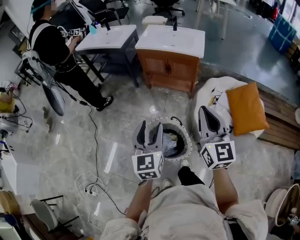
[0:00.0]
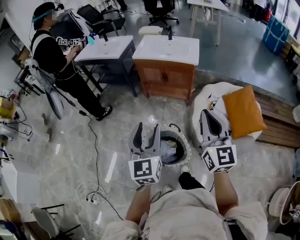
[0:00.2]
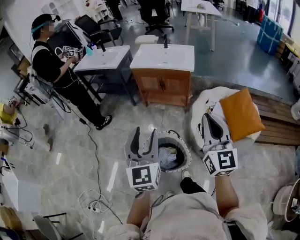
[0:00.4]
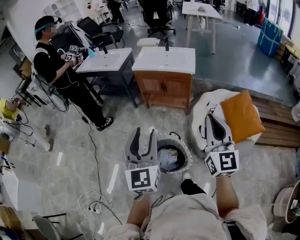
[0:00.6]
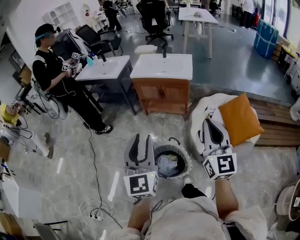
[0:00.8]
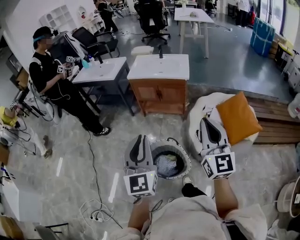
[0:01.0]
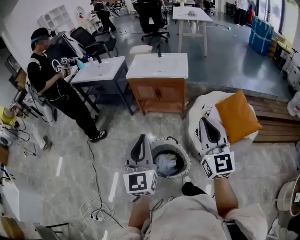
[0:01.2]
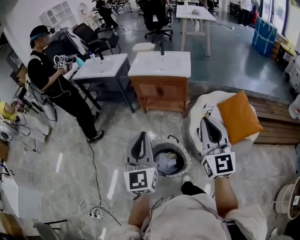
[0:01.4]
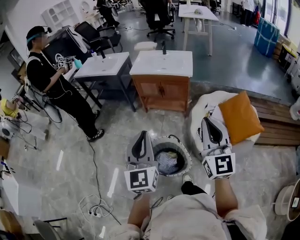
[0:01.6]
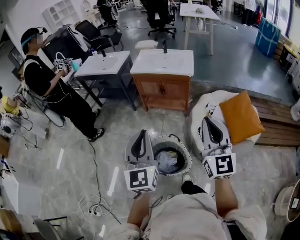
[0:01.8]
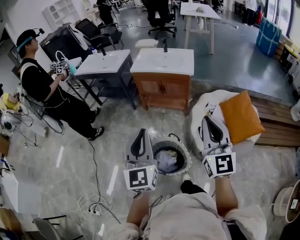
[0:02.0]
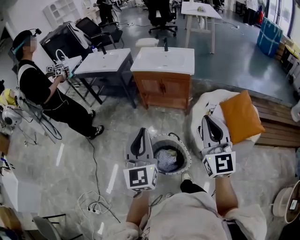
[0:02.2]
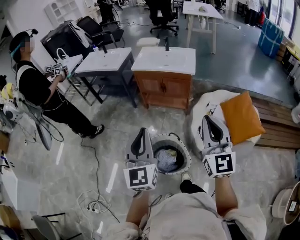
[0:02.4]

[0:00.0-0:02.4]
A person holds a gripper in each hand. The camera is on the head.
0:00.0 to 0:01.2: The left gripper moves upward, approximately 10 cm, and closes up. Meanwhile the right gripper moves upward and backward, some 10 cm.
0:01.2 to 0:02.4: The grippers make only small movements.

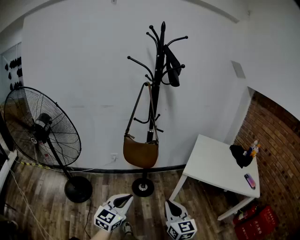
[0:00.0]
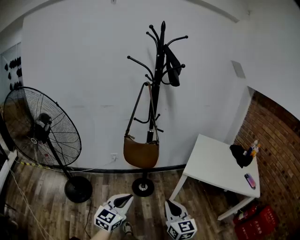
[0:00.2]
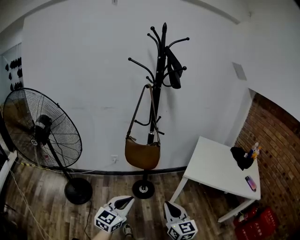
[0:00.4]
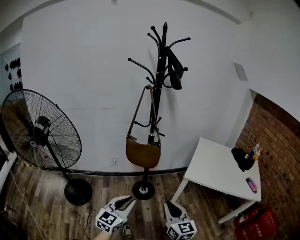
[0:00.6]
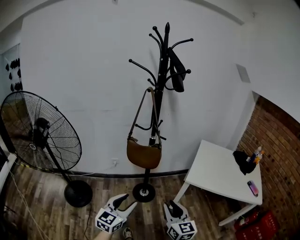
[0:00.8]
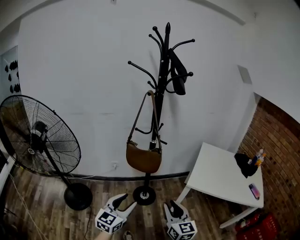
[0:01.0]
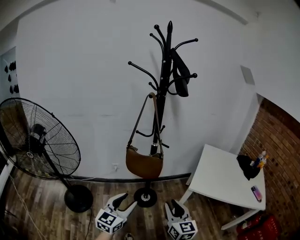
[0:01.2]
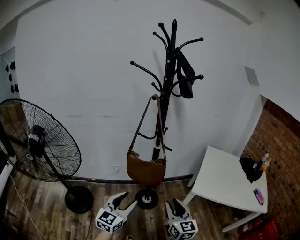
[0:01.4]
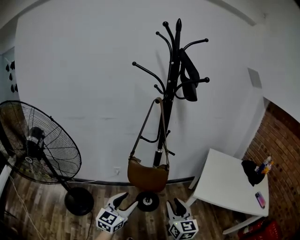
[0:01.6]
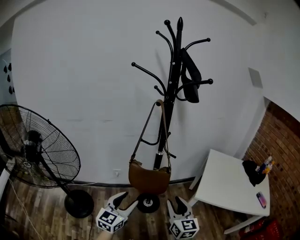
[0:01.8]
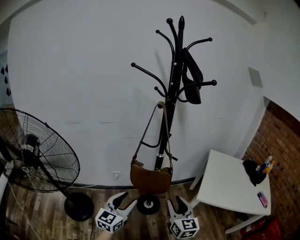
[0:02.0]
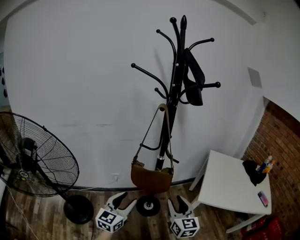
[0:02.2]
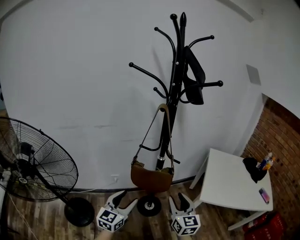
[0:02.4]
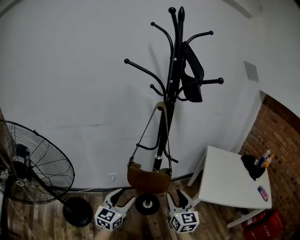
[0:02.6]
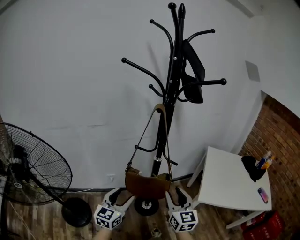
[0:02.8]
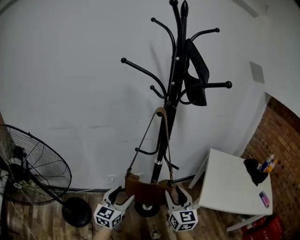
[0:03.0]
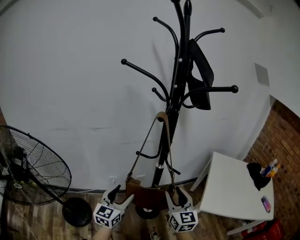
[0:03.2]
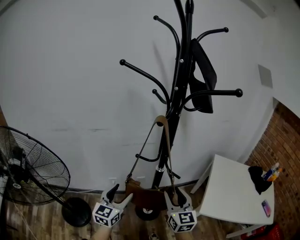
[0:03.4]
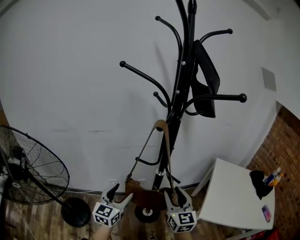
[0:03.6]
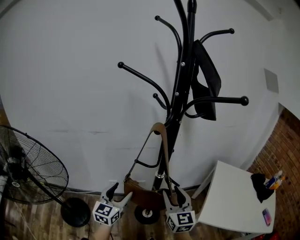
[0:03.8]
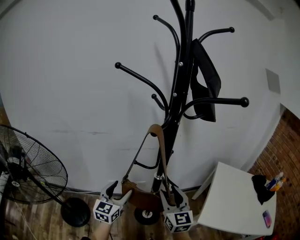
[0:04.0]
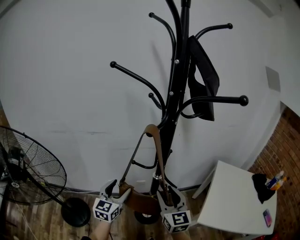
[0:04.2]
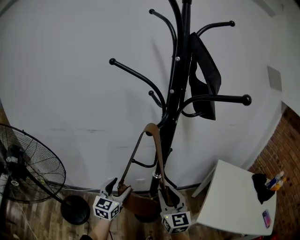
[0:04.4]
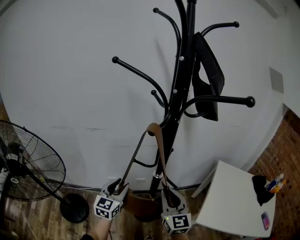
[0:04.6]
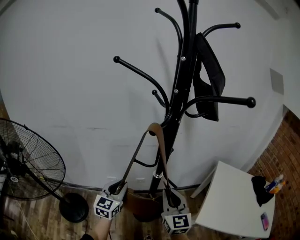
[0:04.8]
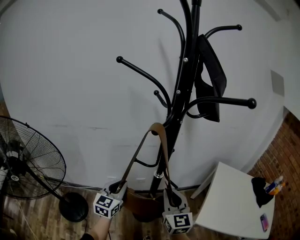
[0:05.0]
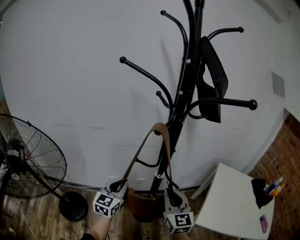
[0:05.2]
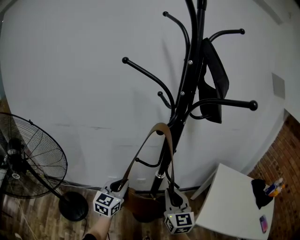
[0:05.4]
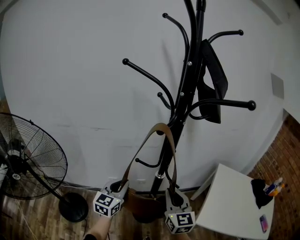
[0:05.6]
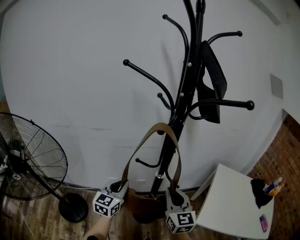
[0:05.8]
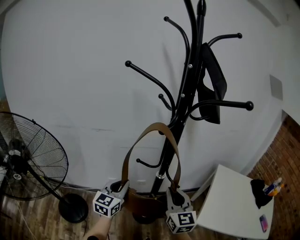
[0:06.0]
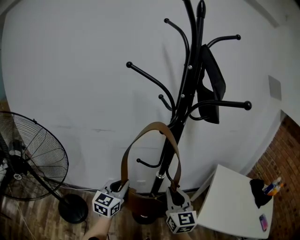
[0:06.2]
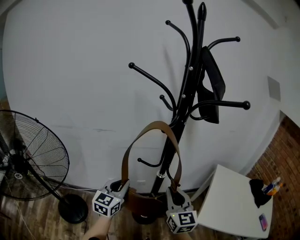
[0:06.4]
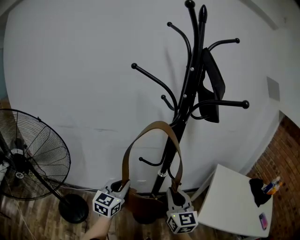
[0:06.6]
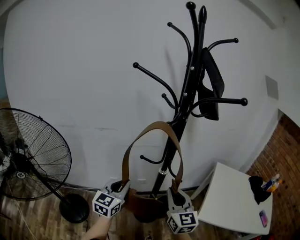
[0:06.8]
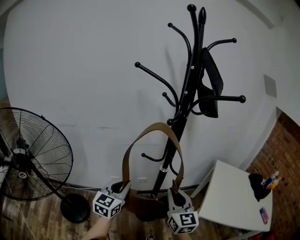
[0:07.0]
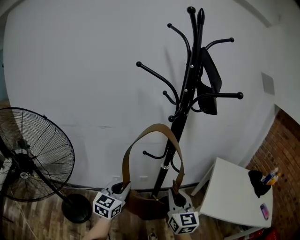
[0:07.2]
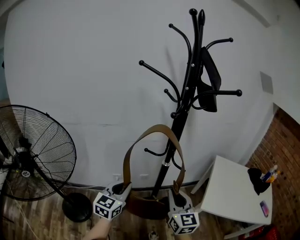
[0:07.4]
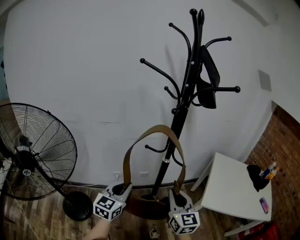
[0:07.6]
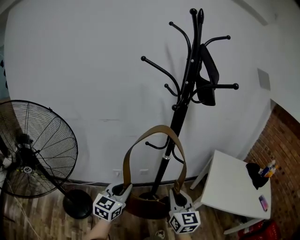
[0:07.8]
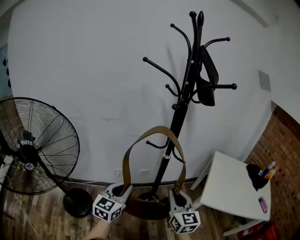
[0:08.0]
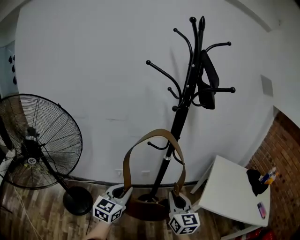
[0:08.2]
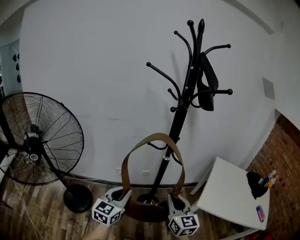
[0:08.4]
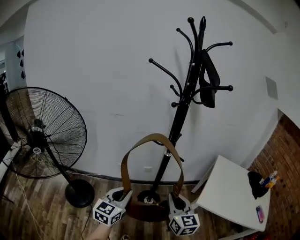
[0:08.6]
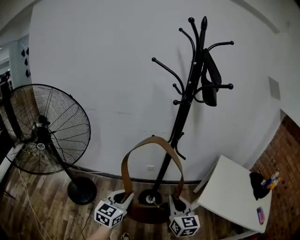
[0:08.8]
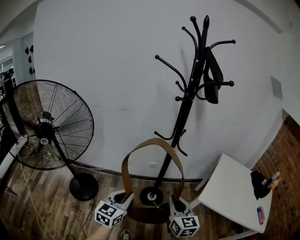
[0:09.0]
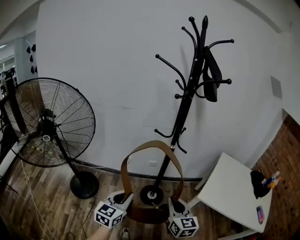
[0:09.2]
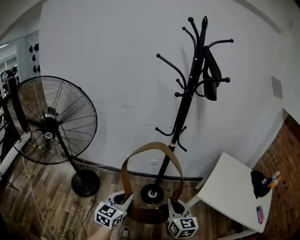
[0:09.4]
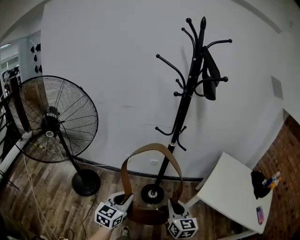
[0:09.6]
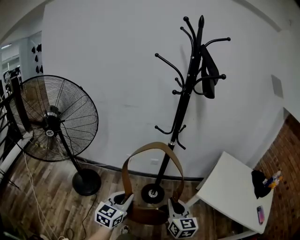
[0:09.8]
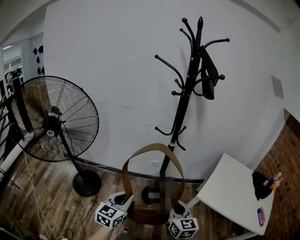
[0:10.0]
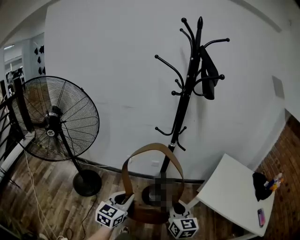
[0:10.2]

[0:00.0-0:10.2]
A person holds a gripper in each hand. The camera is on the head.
0:00.0 to 0:01.4: The grippers both shift forward by approximately 15 cm. The right gripper opens its fingers; the left gripper opens up.
0:01.4 to 0:03.0: The right gripper is displaced forward by some 20 cm, while the left gripper is displaced forward and to the left by roughly 20 cm.
0:03.0 to 0:04.4: The two grippers go roughly 10 cm forward.
0:04.4 to 0:05.8: The left gripper closes up, while the right gripper closes.
0:05.8 to 0:07.2: Both grippers move backward, roughly 10 cm.
0:07.2 to 0:08.8: Both grippers travel together backward, roughly 15 cm.
0:08.8 to 0:10.2: Both grippers travel together backward, some 5 cm.

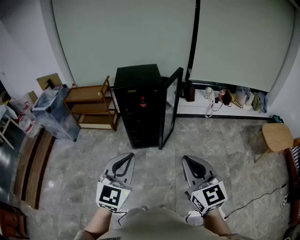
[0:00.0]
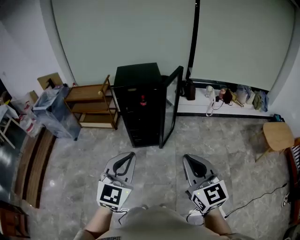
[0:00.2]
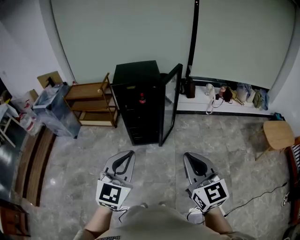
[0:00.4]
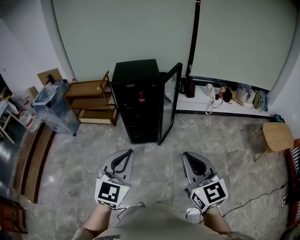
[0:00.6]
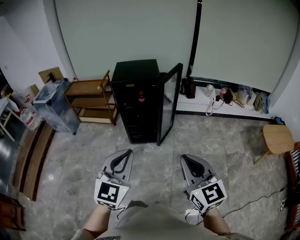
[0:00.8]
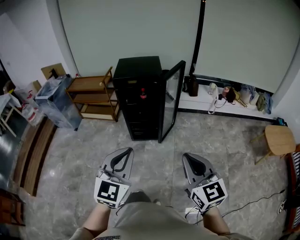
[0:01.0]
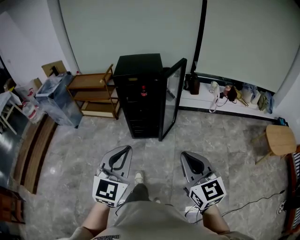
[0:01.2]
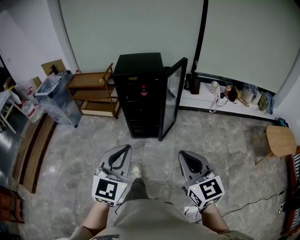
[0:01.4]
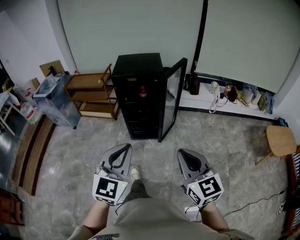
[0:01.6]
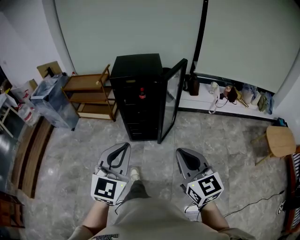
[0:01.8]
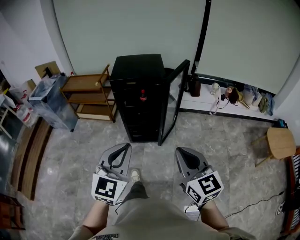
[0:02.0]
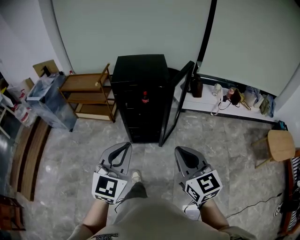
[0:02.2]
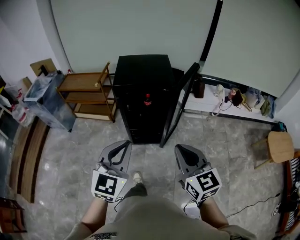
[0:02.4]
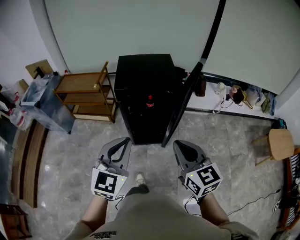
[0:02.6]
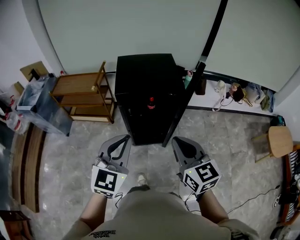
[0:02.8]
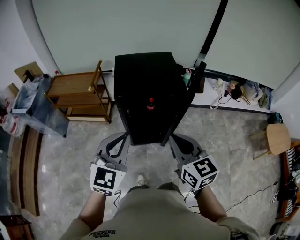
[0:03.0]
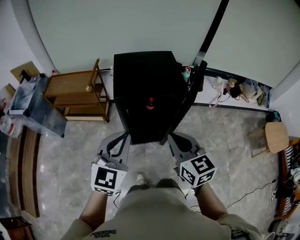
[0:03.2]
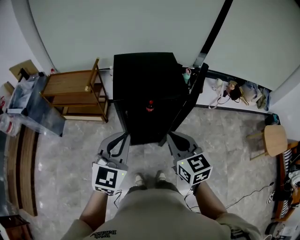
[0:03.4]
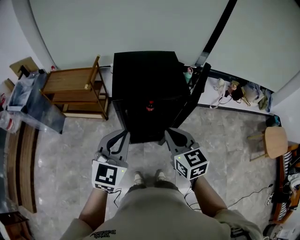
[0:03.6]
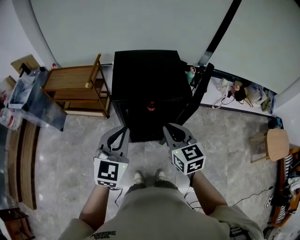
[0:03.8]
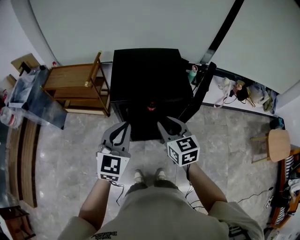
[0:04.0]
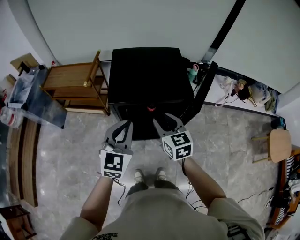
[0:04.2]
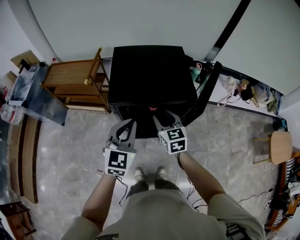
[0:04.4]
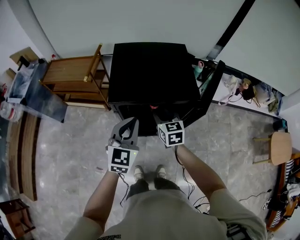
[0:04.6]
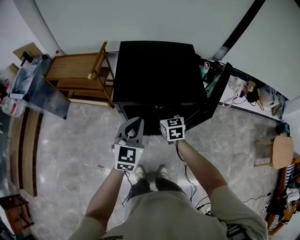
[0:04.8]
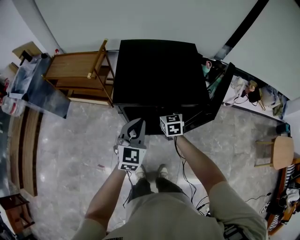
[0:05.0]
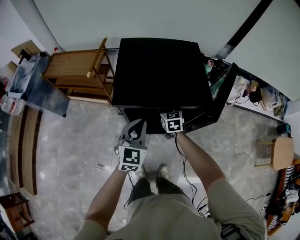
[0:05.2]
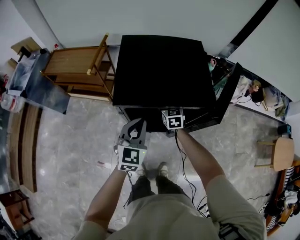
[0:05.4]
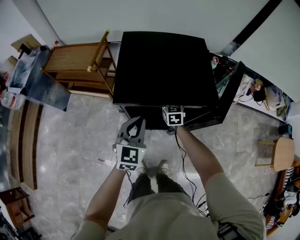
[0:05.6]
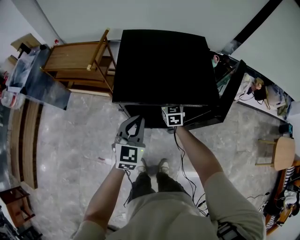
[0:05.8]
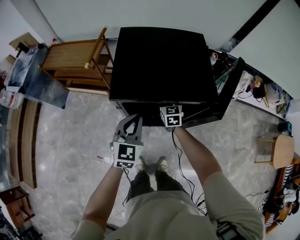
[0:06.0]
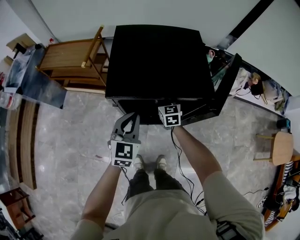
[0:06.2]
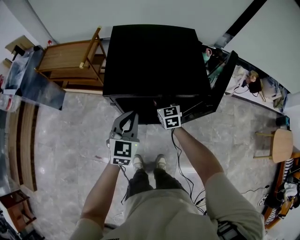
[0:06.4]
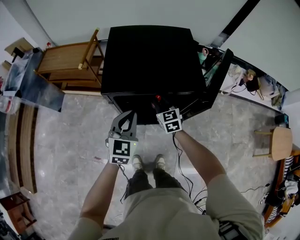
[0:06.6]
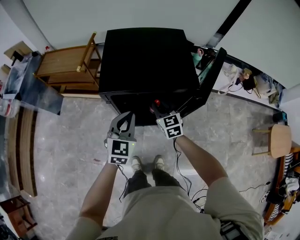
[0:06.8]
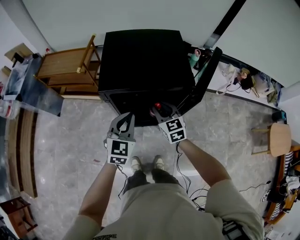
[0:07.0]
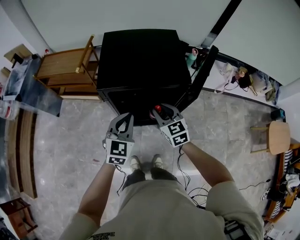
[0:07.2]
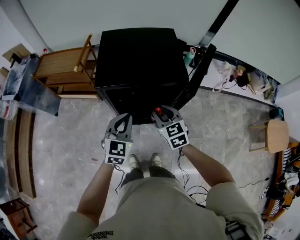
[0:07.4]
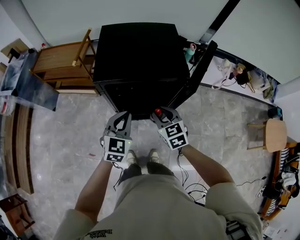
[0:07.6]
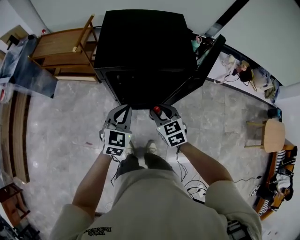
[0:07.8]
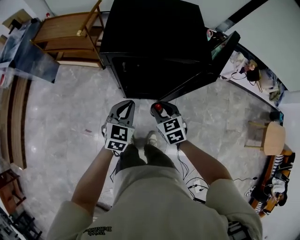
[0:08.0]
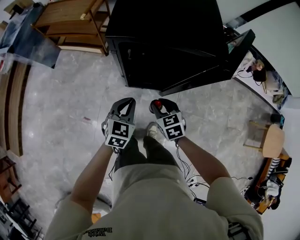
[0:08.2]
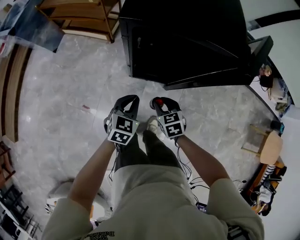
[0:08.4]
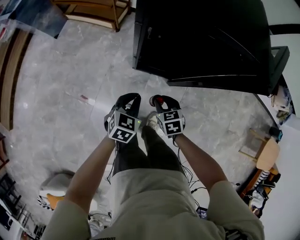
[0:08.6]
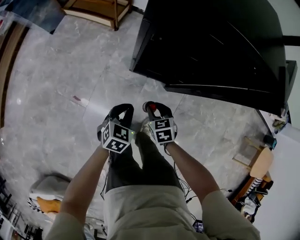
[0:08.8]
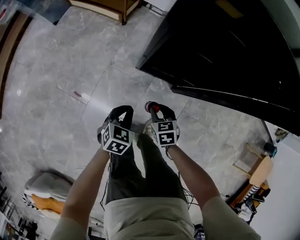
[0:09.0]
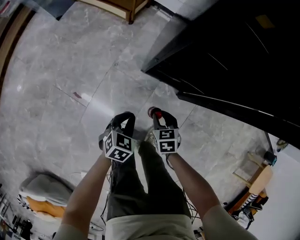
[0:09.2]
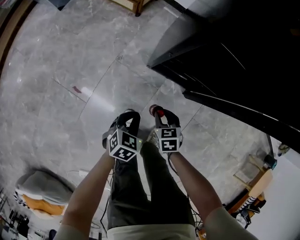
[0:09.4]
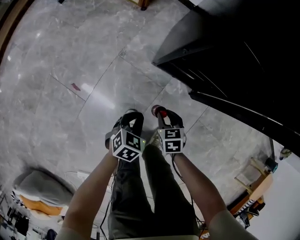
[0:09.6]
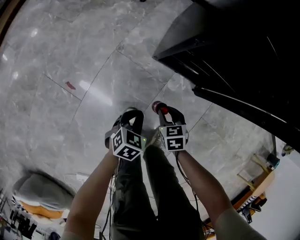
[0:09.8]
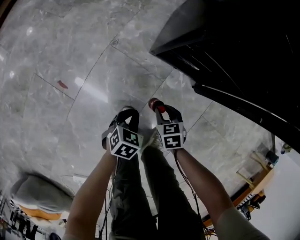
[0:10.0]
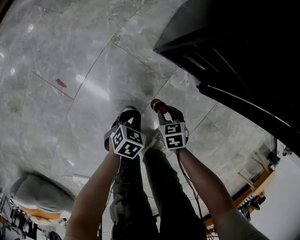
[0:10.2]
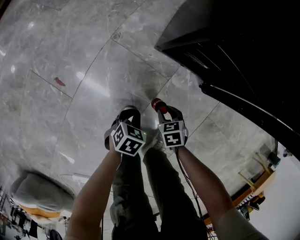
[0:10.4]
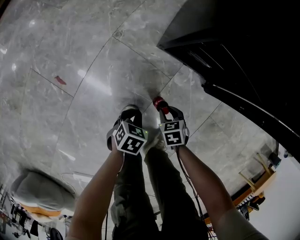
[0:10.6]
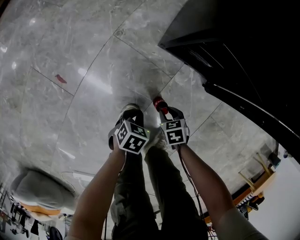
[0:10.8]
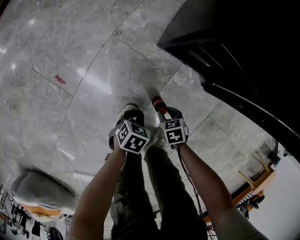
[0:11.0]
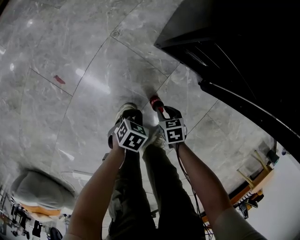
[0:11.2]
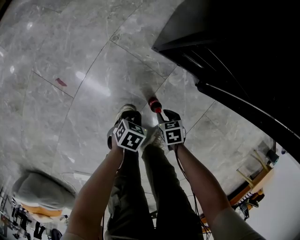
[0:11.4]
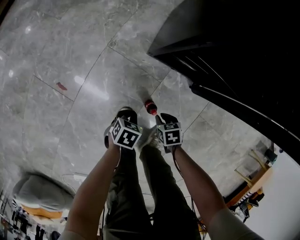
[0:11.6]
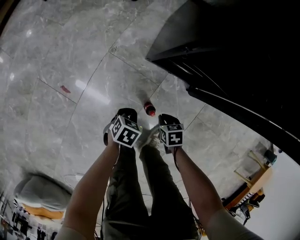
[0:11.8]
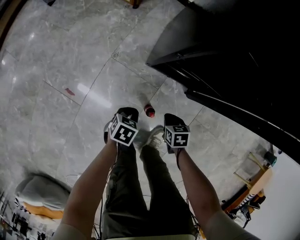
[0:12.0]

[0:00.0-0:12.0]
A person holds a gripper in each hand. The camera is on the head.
0:00.0 to 0:01.6: The left gripper shifts by roughly 5 cm. The right gripper heads downward, covering about 5 cm.
0:01.6 to 0:03.0: Both grippers are carried forward and to the left, about 40 cm.
0:03.0 to 0:04.4: The right gripper travels forward and downward by roughly 30 cm, and opens. Meanwhile the left gripper is displaced forward and downward by roughly 20 cm.
0:04.4 to 0:06.0: The left gripper travels downward and forward by some 15 cm. Meanwhile the right gripper travels downward and forward by approximately 20 cm.
0:06.0 to 0:07.6: The left gripper heads backward, covering some 10 cm. The right gripper heads backward and upward, covering some 25 cm.
0:07.6 to 0:09.0: Both grippers travel together downward, approximately 40 cm. The right gripper swivels some 30 degrees. The left gripper swivels about 30 degrees.
0:09.0 to 0:10.4: The grippers both shift downward by some 40 cm. The left gripper rotates about 20 degrees.
0:10.4 to 0:12.0: Both grippers move upward, roughly 15 cm. The right gripper closes its fingers.
